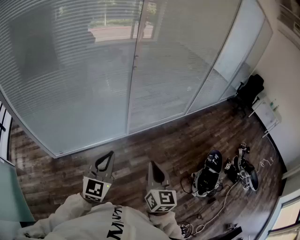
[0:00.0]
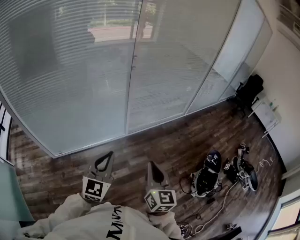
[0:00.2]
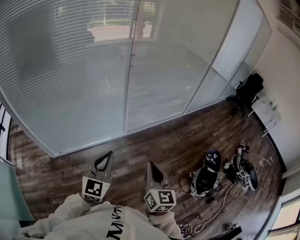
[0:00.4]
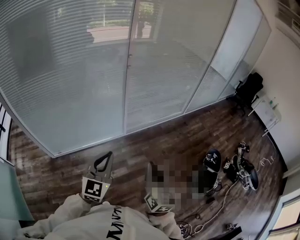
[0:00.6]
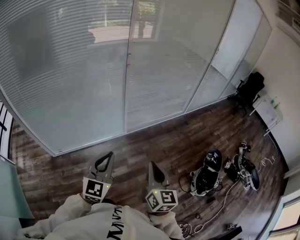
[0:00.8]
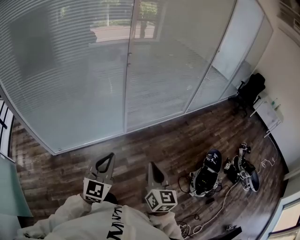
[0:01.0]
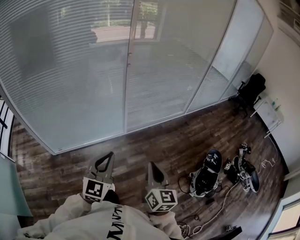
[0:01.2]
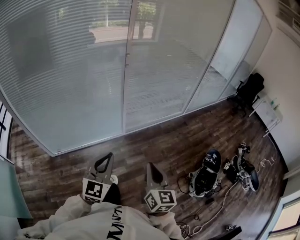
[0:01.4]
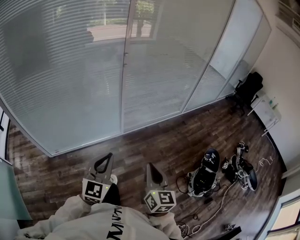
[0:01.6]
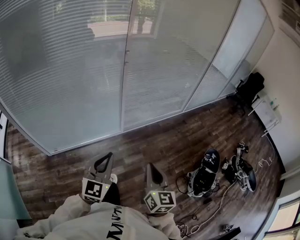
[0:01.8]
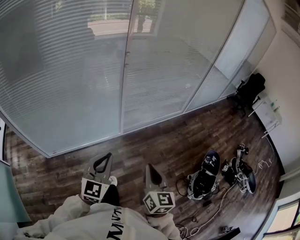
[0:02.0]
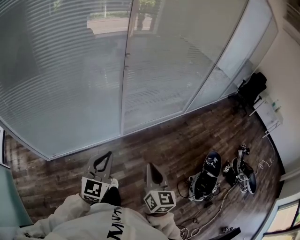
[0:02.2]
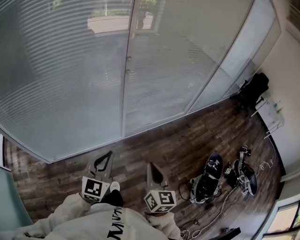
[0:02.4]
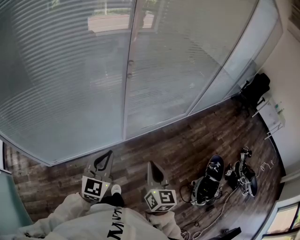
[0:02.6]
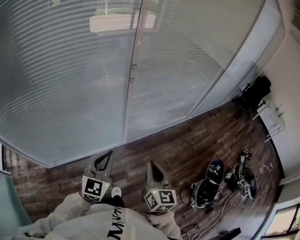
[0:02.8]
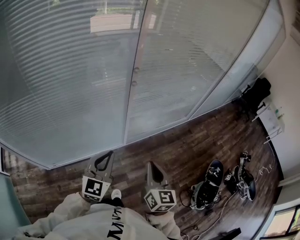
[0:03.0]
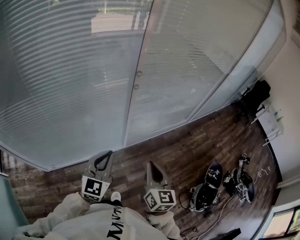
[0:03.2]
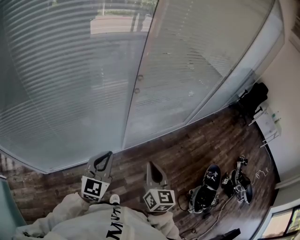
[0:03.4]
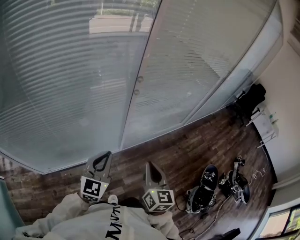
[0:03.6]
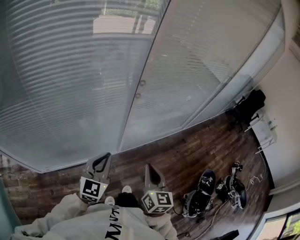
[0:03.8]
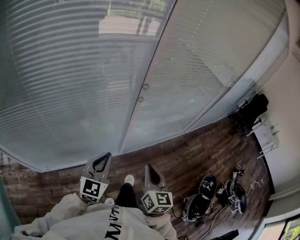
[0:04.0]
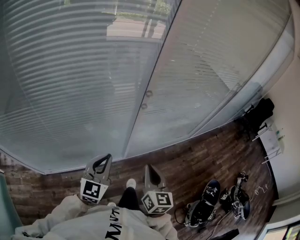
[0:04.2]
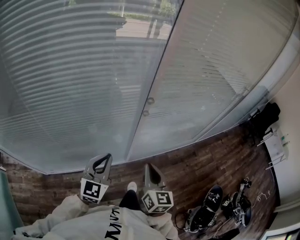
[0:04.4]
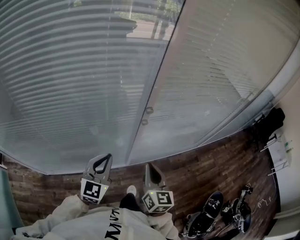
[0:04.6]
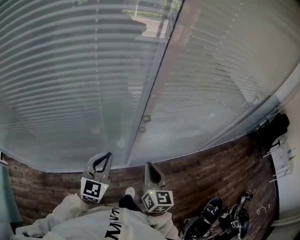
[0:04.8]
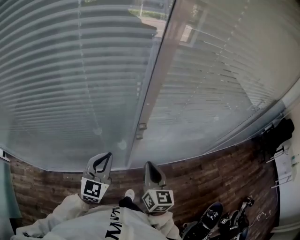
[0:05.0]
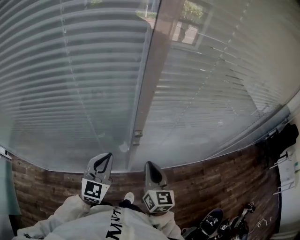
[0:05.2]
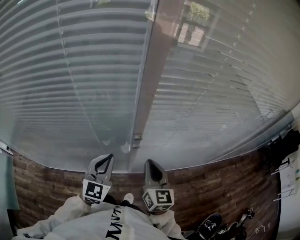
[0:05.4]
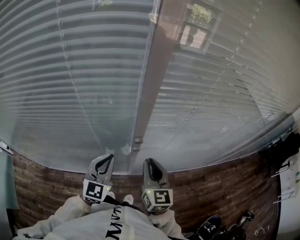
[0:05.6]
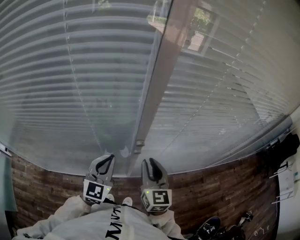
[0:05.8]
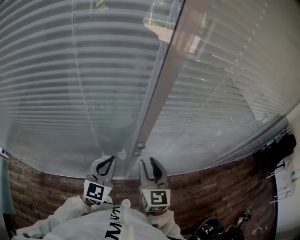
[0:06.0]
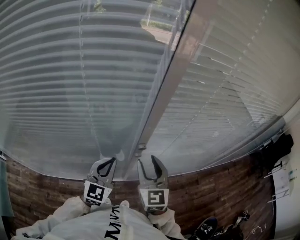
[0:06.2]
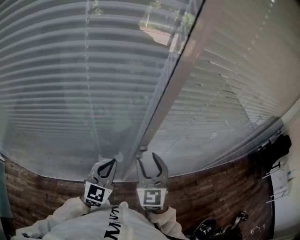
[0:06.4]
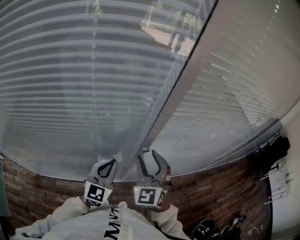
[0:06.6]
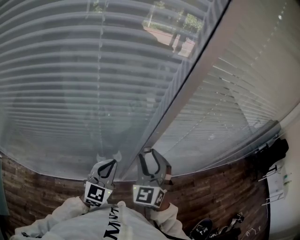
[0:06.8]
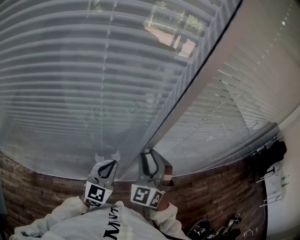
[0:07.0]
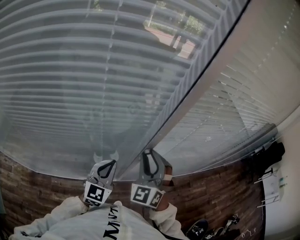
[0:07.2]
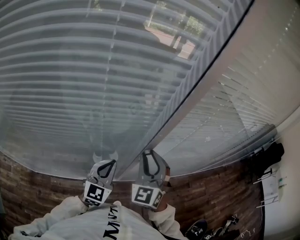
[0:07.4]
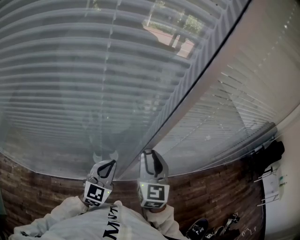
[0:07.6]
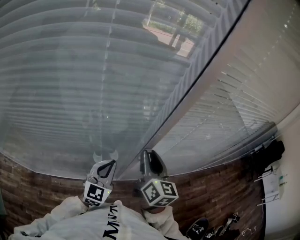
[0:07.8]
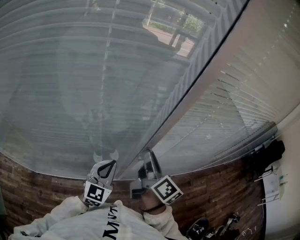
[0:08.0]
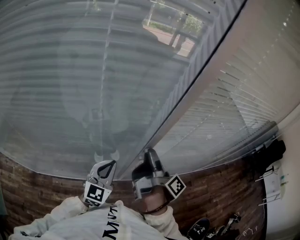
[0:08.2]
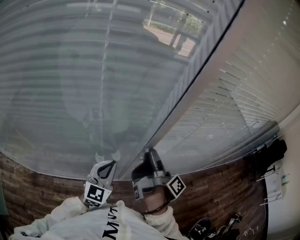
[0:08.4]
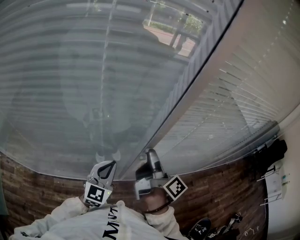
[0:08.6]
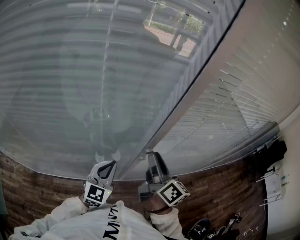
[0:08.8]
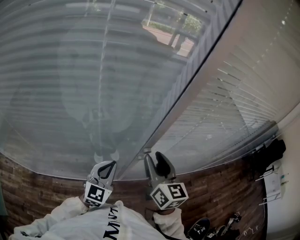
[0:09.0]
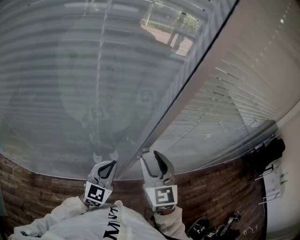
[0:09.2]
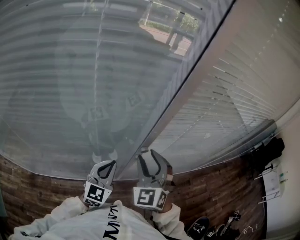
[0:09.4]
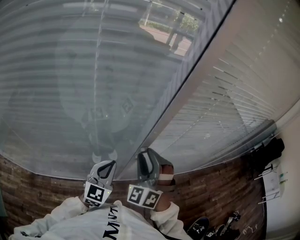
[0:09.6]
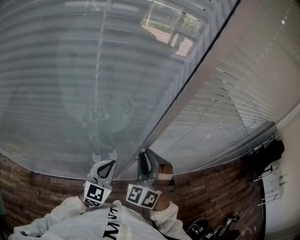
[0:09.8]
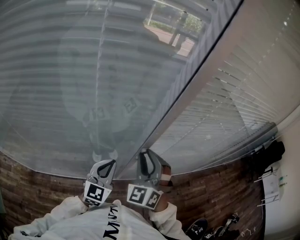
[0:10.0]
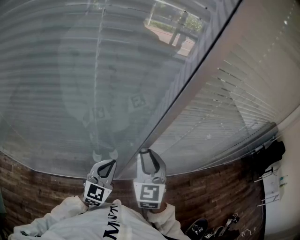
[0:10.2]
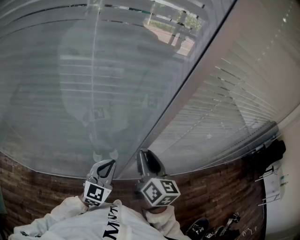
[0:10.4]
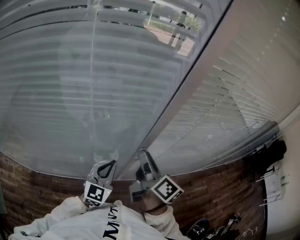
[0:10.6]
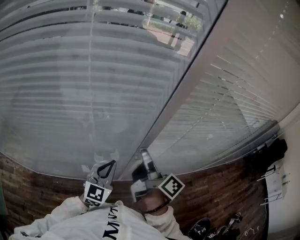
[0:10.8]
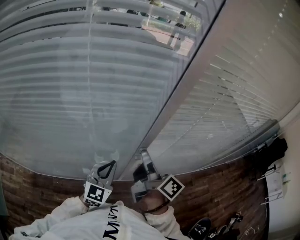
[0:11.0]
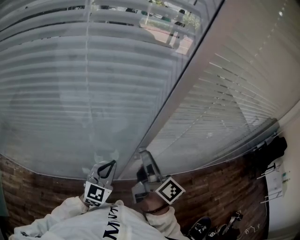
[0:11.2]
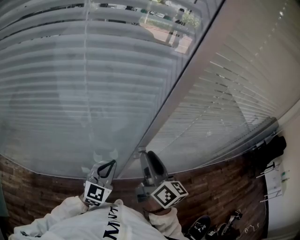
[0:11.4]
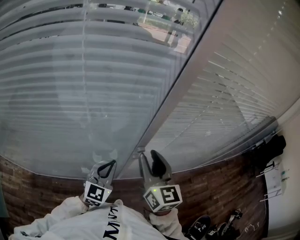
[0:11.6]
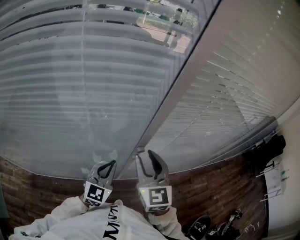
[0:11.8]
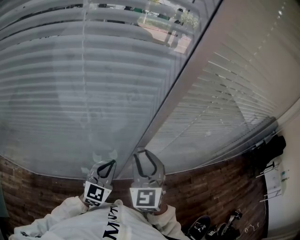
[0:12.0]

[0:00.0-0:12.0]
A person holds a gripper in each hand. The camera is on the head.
0:00.0 to 0:01.6: The right gripper ends up roughly 5 cm from where it was.
0:01.6 to 0:03.0: Both grippers travel together forward, approximately 20 cm.
0:03.0 to 0:04.4: Both grippers move forward, about 10 cm.
0:04.4 to 0:06.0: Both grippers move forward, approximately 15 cm. The right gripper turns by roughly 20 degrees, and opens its fingers.
0:06.0 to 0:07.6: The right gripper moves some 5 cm.
0:07.6 to 0:09.0: The right gripper changes its angle by approximately 20 degrees.
0:10.4 to 0:12.0: The right gripper twists roughly 50 degrees counterclockwise, seen from behind.

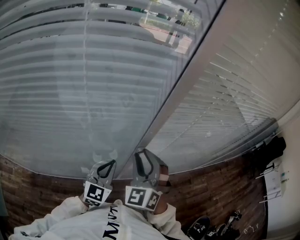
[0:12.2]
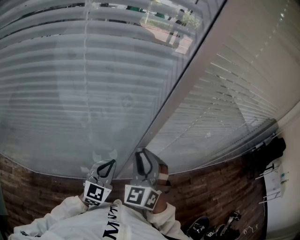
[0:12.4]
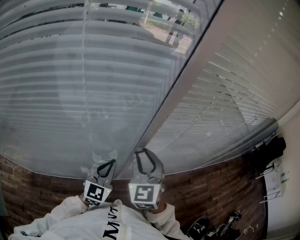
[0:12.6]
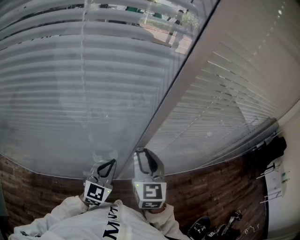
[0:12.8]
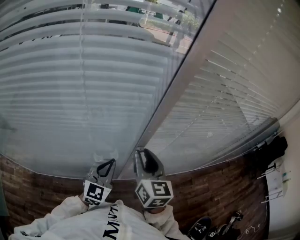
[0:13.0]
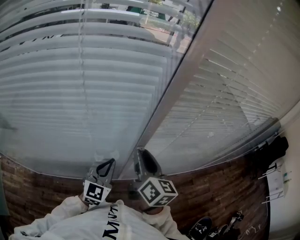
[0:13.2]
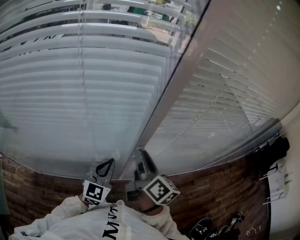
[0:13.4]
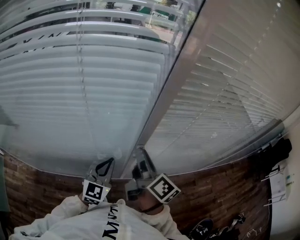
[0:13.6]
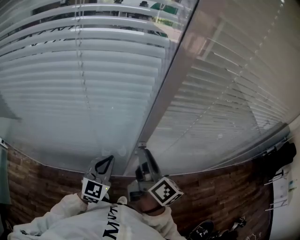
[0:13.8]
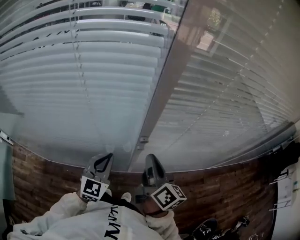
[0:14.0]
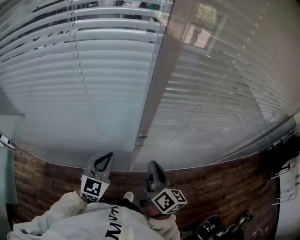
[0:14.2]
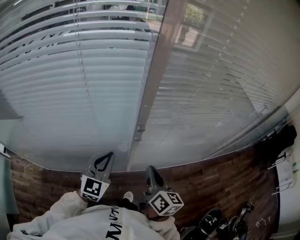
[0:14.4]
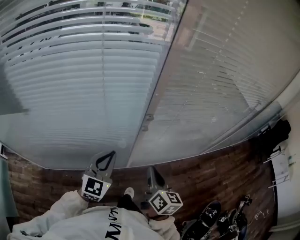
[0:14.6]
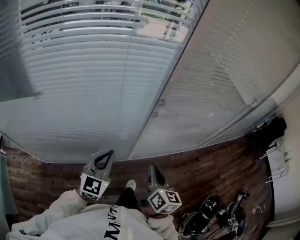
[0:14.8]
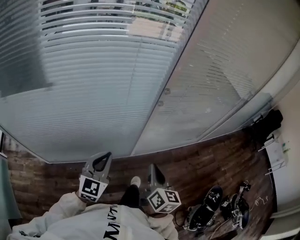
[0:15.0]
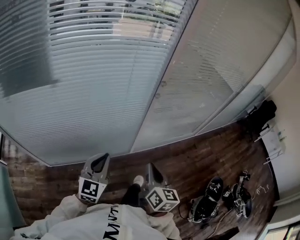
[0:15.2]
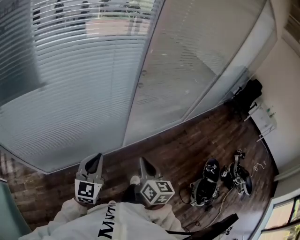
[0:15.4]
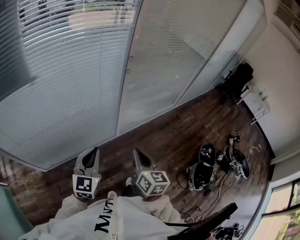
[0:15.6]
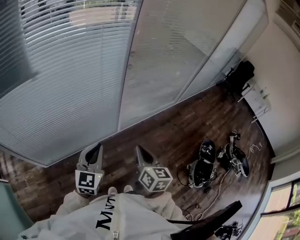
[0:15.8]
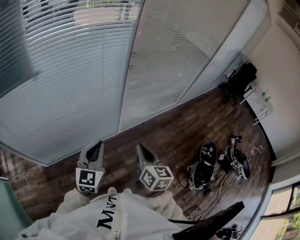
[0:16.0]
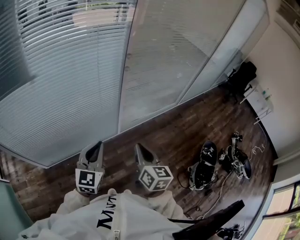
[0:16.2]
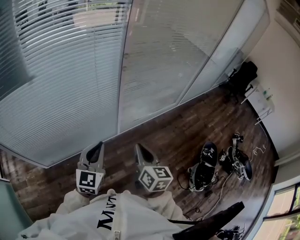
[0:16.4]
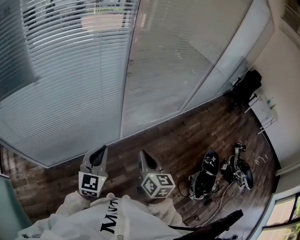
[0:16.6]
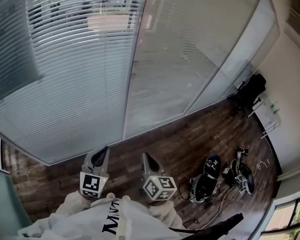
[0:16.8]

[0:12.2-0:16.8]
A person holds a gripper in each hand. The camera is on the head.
0:12.2 to 0:13.8: The right gripper rotates around the line of its fingers by roughly 100 degrees, clockwise from behind.
0:13.8 to 0:15.2: The left gripper heads backward and to the left, covering about 25 cm. The right gripper travels backward by roughly 25 cm, swivels some 40 degrees, and closes.
0:15.2 to 0:16.8: The right gripper travels to the right and backward by roughly 10 cm. Meanwhile the left gripper travels to the right by approximately 10 cm.

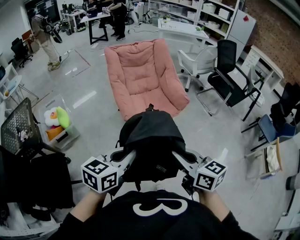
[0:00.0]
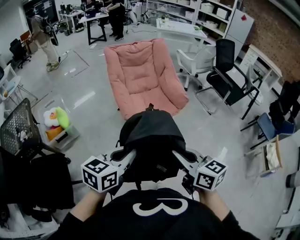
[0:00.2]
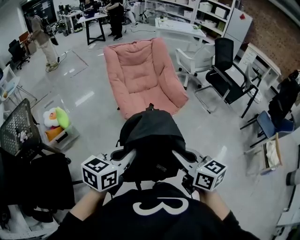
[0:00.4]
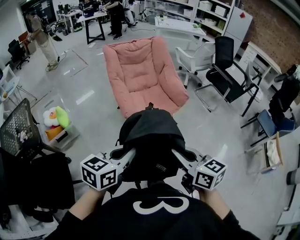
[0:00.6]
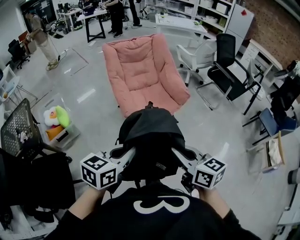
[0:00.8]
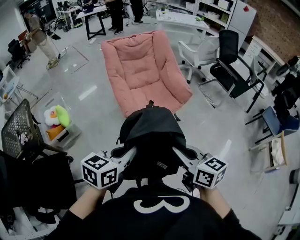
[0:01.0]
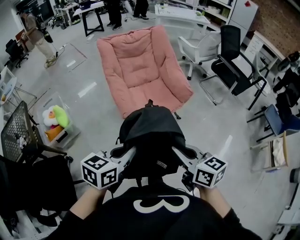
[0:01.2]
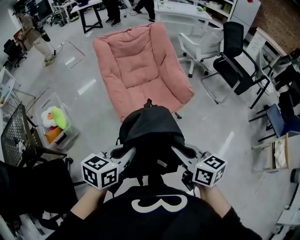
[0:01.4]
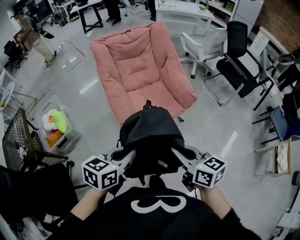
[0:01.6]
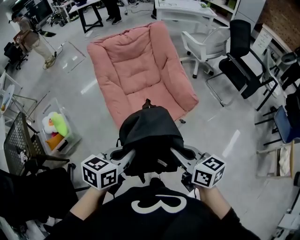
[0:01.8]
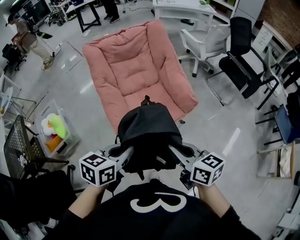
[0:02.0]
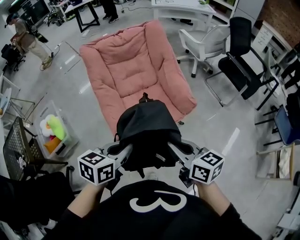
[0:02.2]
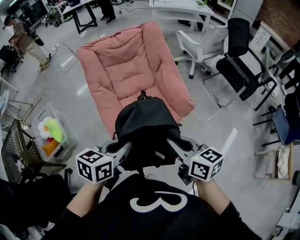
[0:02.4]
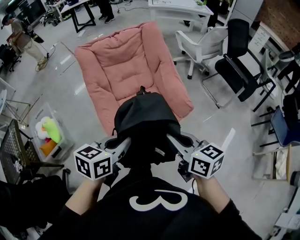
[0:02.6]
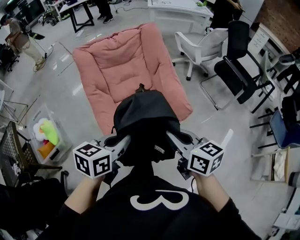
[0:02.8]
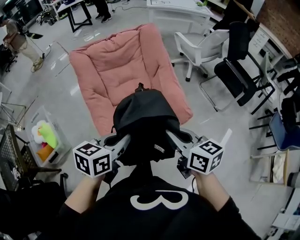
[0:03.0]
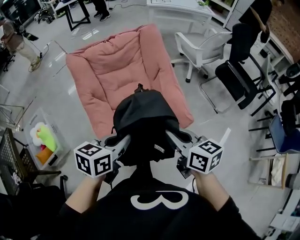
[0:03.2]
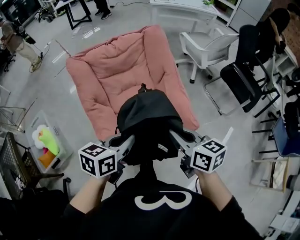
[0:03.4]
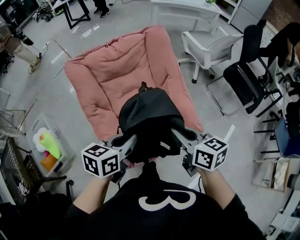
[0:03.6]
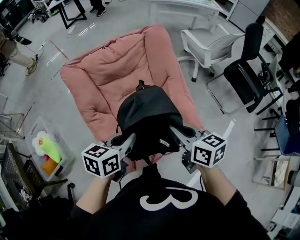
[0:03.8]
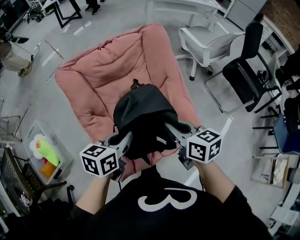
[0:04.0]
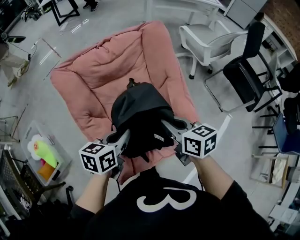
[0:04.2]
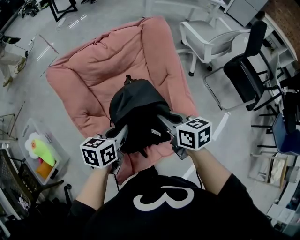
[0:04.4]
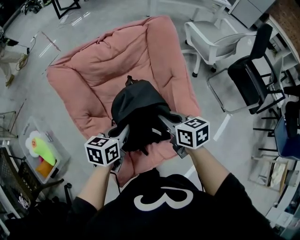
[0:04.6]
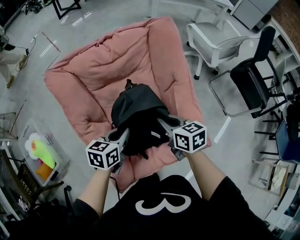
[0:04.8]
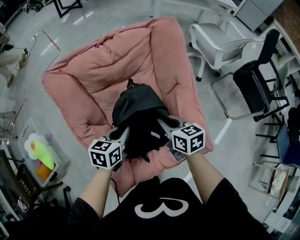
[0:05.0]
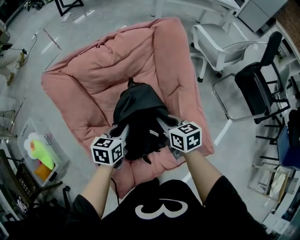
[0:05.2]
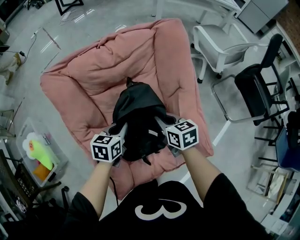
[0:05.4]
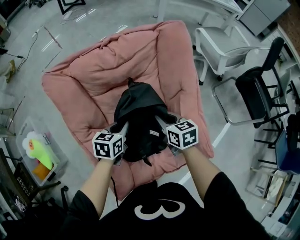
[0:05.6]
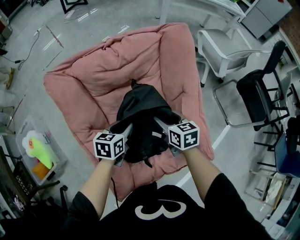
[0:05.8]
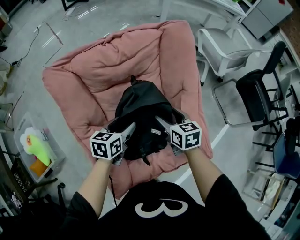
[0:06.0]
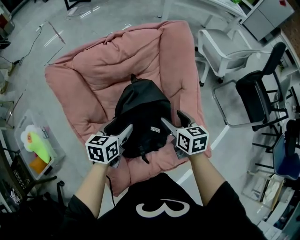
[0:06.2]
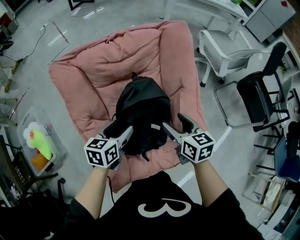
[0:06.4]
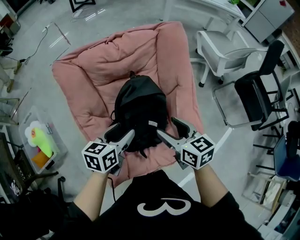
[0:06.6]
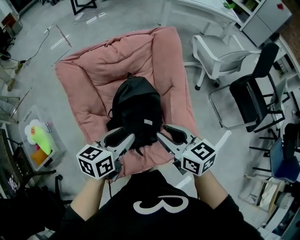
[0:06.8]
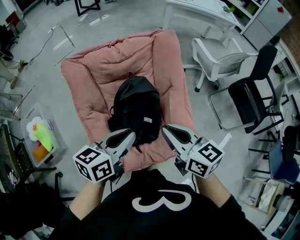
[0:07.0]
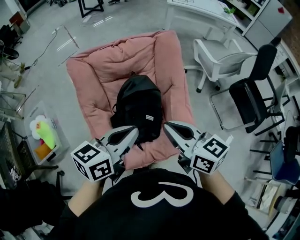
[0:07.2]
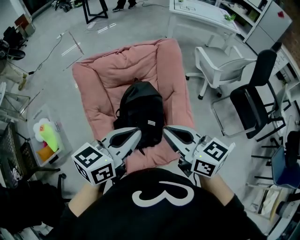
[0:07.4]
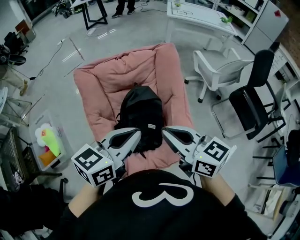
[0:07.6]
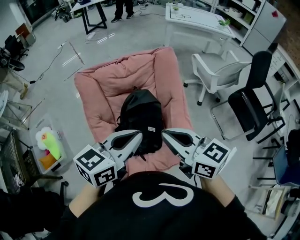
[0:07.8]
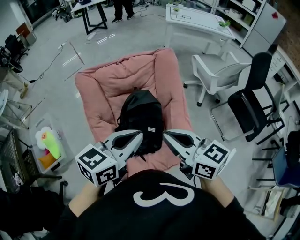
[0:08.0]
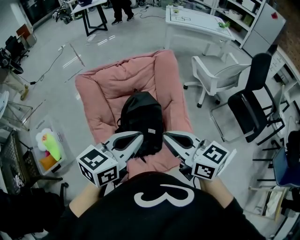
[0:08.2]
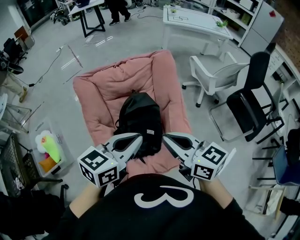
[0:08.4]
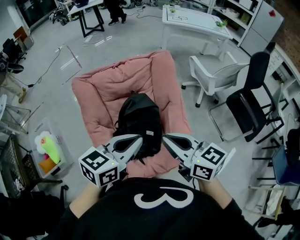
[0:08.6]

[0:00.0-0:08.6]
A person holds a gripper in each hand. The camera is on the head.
0:00.0 to 0:01.4: Both grippers move forward and downward, roughly 15 cm.
0:01.4 to 0:02.8: The grippers both shift forward by about 25 cm.
0:02.8 to 0:04.4: The right gripper heads forward, covering approximately 35 cm. Meanwhile the left gripper travels forward and downward by roughly 35 cm.
0:04.4 to 0:05.8: The left gripper shifts approximately 15 cm downward and forward, and opens up. Meanwhile the right gripper travels forward and downward by some 20 cm, and opens its fingers.
0:05.8 to 0:07.2: Both grippers move upward and backward, roughly 35 cm. The left gripper turns by some 30 degrees, and closes, while the right gripper changes its angle by roughly 30 degrees, and closes.
